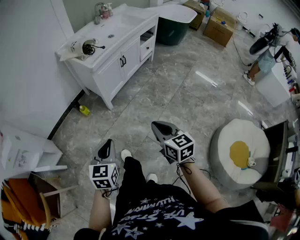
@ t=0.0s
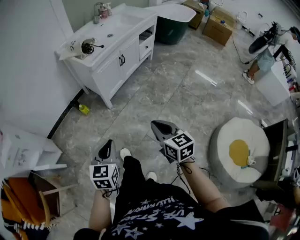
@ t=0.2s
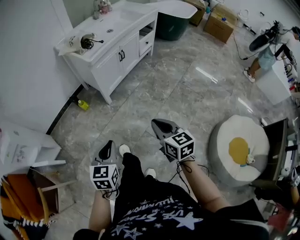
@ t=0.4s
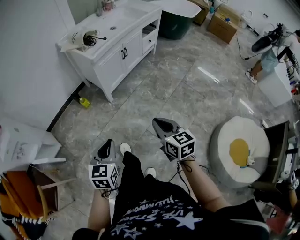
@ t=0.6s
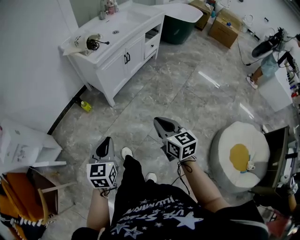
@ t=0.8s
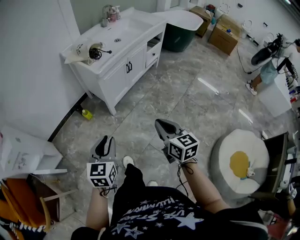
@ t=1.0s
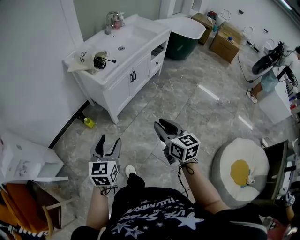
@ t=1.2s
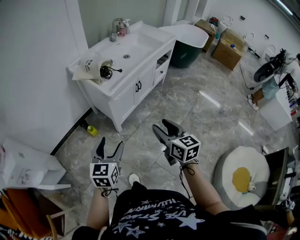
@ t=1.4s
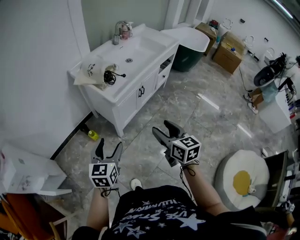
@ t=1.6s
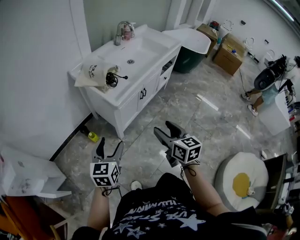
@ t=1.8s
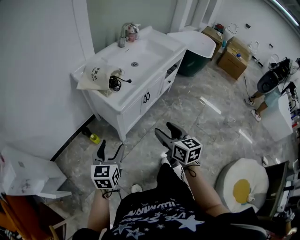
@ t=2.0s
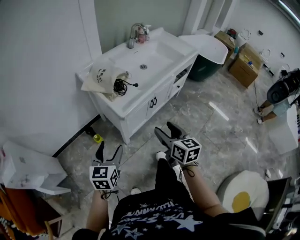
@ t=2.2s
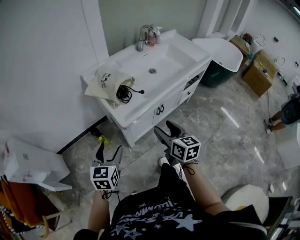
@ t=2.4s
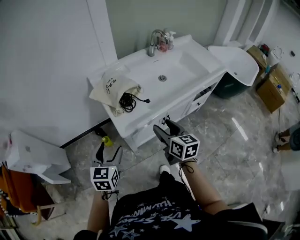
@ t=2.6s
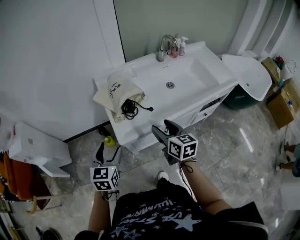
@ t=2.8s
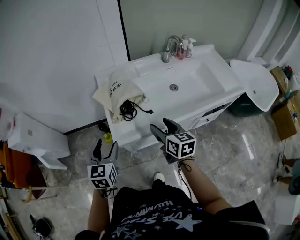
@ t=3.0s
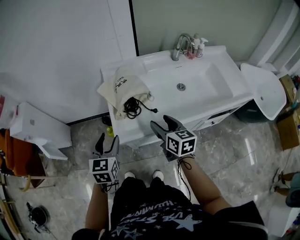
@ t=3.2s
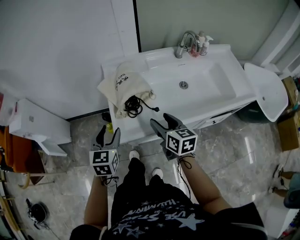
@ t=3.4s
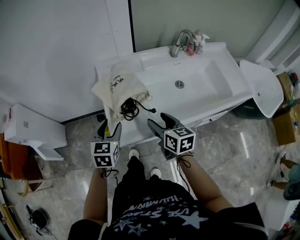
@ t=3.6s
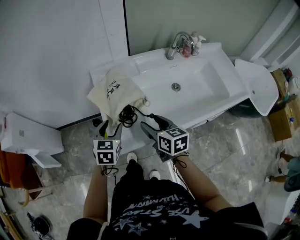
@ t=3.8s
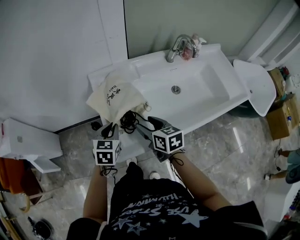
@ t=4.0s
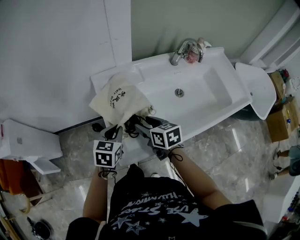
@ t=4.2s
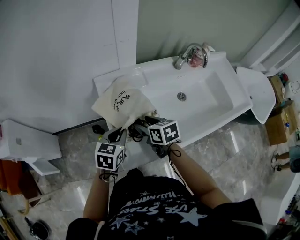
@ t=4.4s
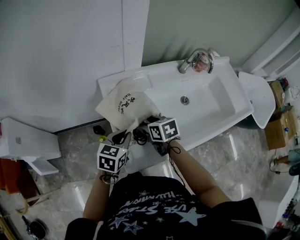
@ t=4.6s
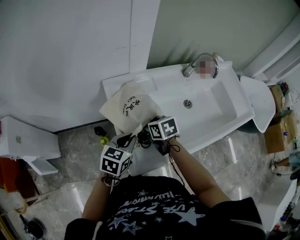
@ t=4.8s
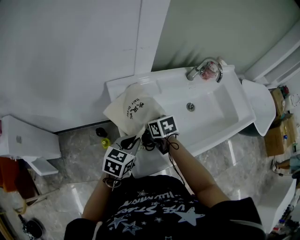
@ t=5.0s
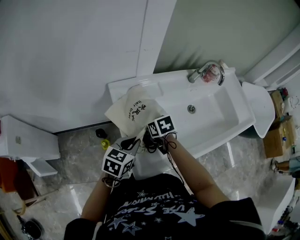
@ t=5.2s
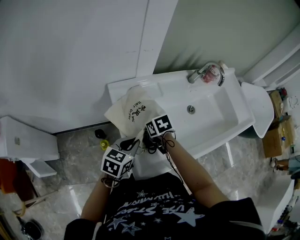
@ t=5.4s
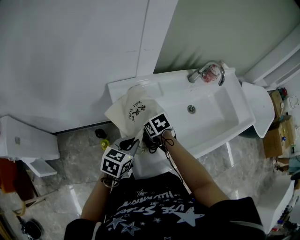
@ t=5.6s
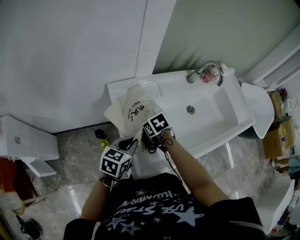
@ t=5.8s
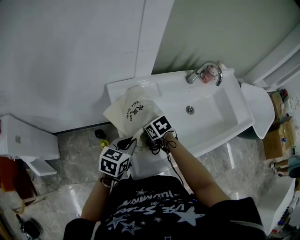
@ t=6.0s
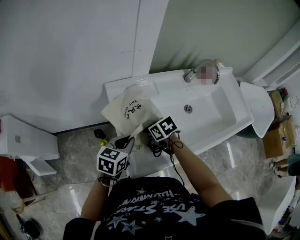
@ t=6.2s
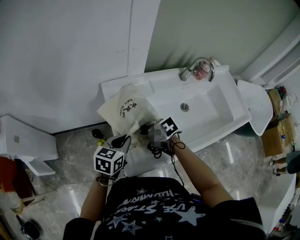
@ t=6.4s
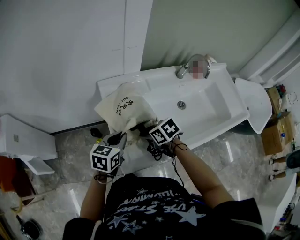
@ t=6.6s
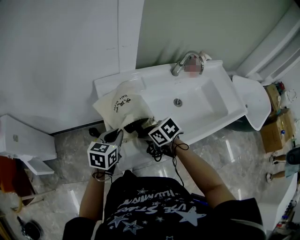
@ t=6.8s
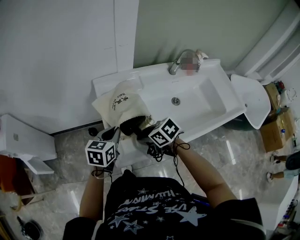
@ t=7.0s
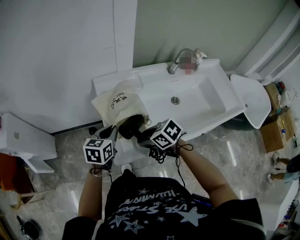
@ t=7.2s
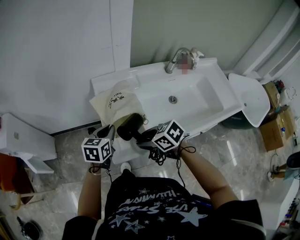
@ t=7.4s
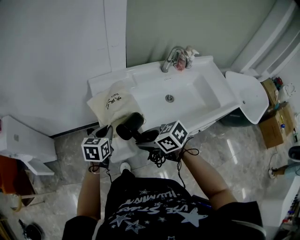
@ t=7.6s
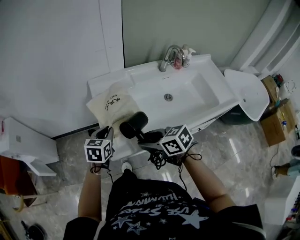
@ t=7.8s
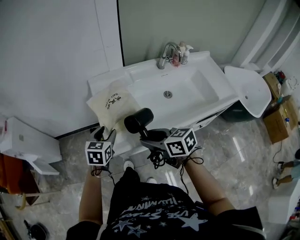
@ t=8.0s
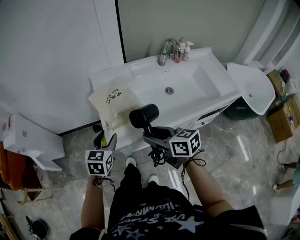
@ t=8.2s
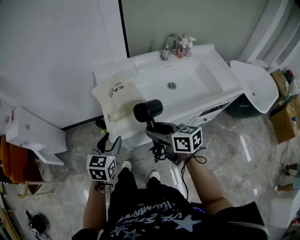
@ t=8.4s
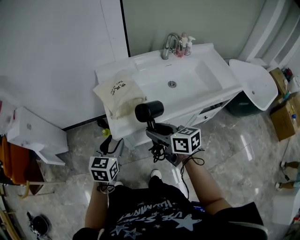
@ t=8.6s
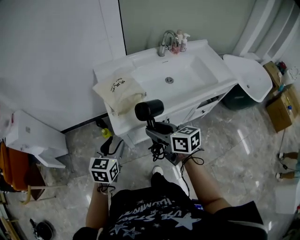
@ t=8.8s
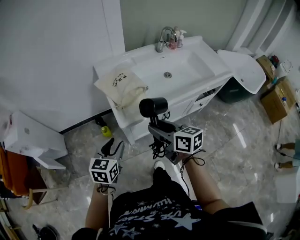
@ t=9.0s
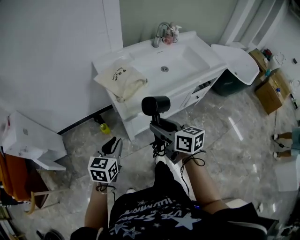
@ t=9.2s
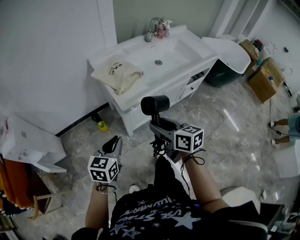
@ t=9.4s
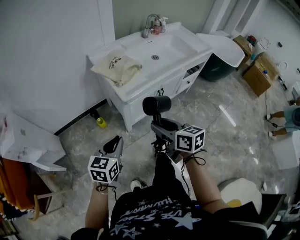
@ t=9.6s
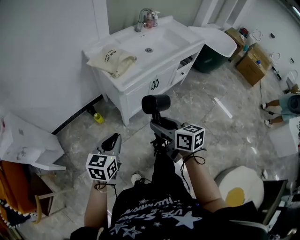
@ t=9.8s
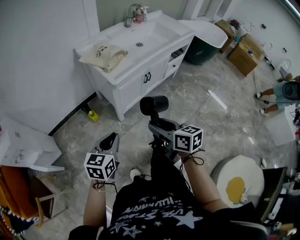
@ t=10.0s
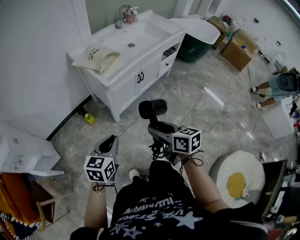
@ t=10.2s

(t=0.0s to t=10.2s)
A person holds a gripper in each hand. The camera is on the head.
t=0.0s - t=1.4s: Both grippers travel together forward, roughly 20 cm. The left gripper opens. The right gripper opens up.
t=1.4s - t=3.0s: The left gripper shifts by approximately 30 cm, and changes its angle by some 40 degrees; the right gripper ends up approximately 40 cm from where it was, and turns by about 30 degrees.
t=3.0s - t=4.4s: The left gripper heads forward, covering about 15 cm, turns by about 20 degrees, and closes up, while the right gripper heads forward and to the left, covering some 20 cm, and swivels some 20 degrees.
t=4.4s - t=5.8s: The right gripper moves downward and forward, about 10 cm, and rotates roughly 30 degrees.
t=5.8s - t=7.2s: The right gripper is displaced backward and upward by roughly 20 cm, and rotates roughly 30 degrees.
t=7.2s - t=8.8s: The right gripper goes some 15 cm backward and upward, and turns by about 40 degrees. Meanwhile the left gripper heads backward, covering some 20 cm, and opens.
t=8.8s - t=10.2s: The right gripper moves approximately 35 cm, and turns by about 30 degrees, while the left gripper moves some 30 cm, turns by roughly 30 degrees, and closes its fingers.

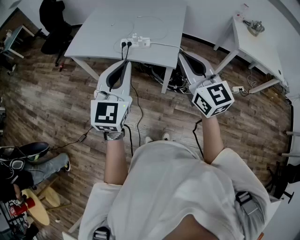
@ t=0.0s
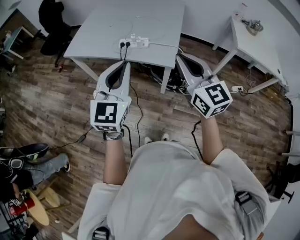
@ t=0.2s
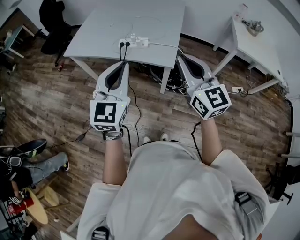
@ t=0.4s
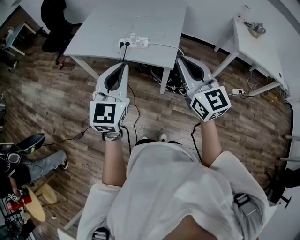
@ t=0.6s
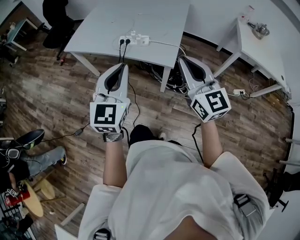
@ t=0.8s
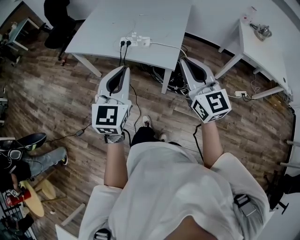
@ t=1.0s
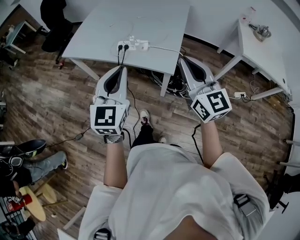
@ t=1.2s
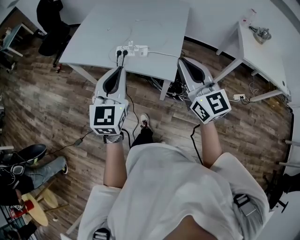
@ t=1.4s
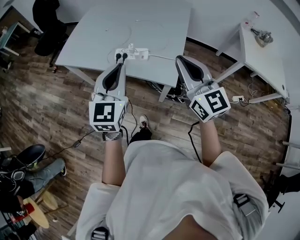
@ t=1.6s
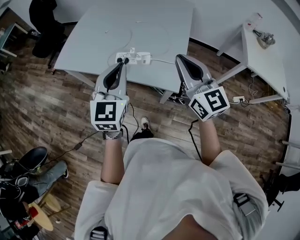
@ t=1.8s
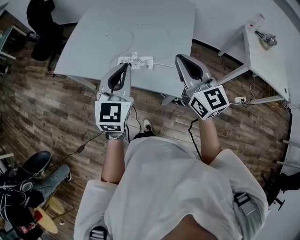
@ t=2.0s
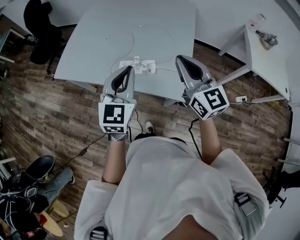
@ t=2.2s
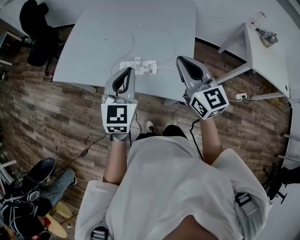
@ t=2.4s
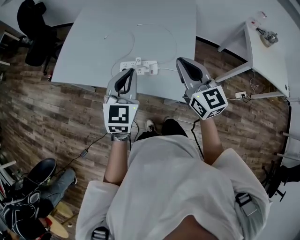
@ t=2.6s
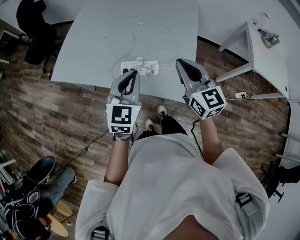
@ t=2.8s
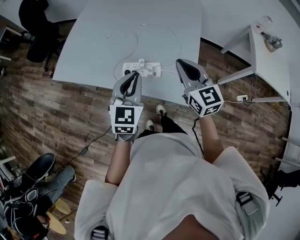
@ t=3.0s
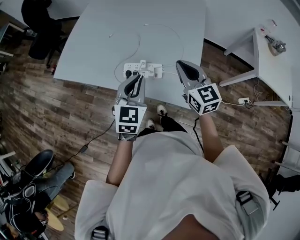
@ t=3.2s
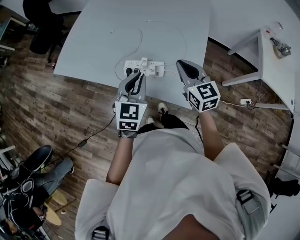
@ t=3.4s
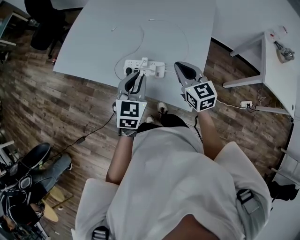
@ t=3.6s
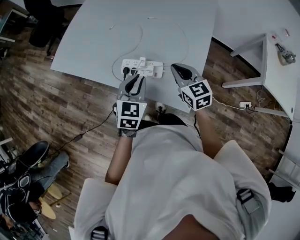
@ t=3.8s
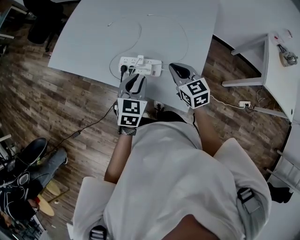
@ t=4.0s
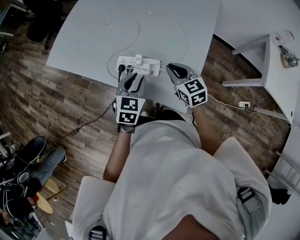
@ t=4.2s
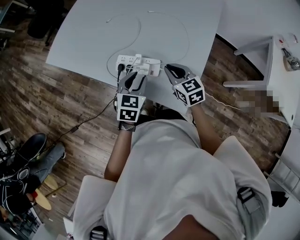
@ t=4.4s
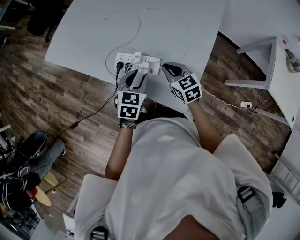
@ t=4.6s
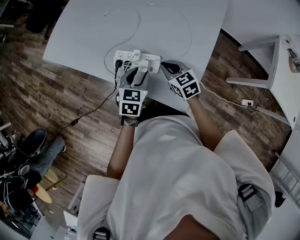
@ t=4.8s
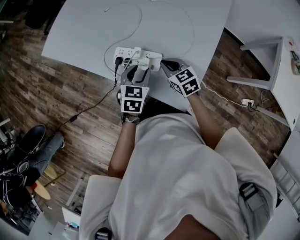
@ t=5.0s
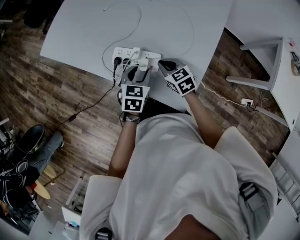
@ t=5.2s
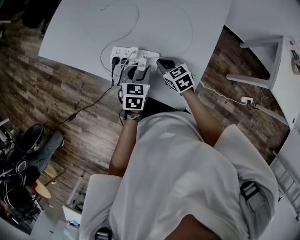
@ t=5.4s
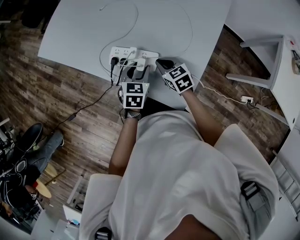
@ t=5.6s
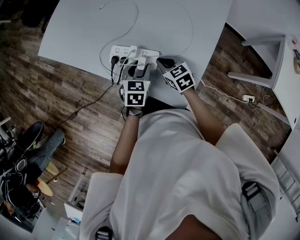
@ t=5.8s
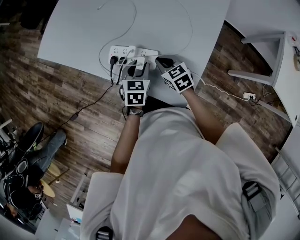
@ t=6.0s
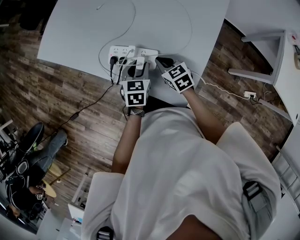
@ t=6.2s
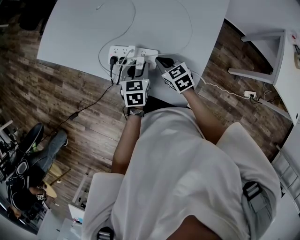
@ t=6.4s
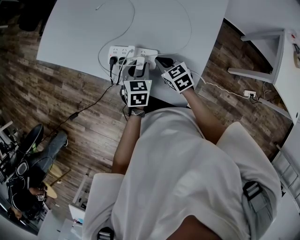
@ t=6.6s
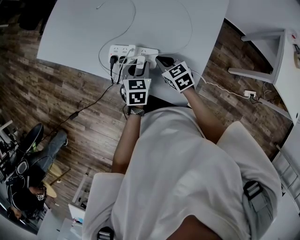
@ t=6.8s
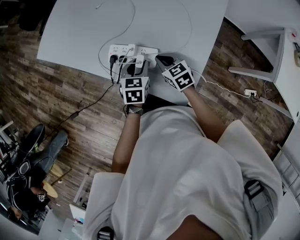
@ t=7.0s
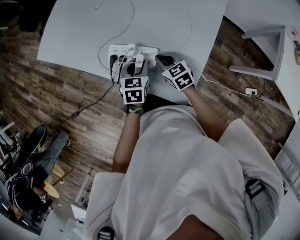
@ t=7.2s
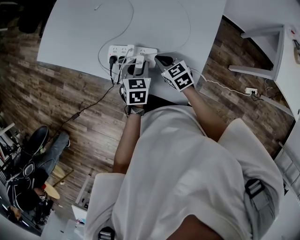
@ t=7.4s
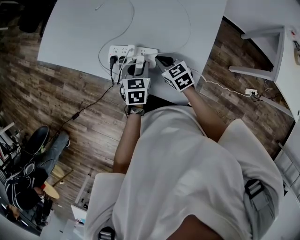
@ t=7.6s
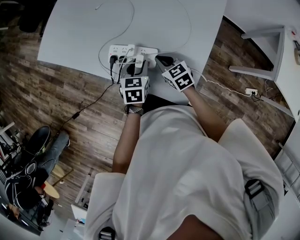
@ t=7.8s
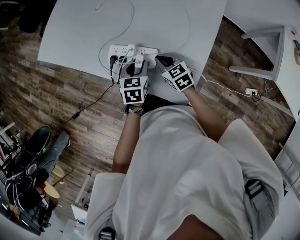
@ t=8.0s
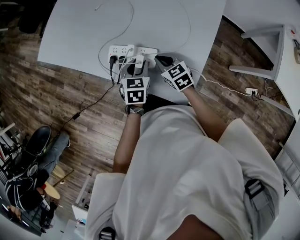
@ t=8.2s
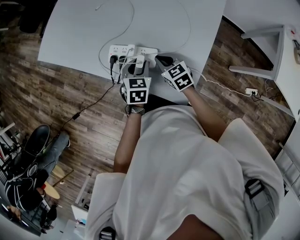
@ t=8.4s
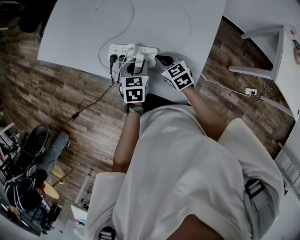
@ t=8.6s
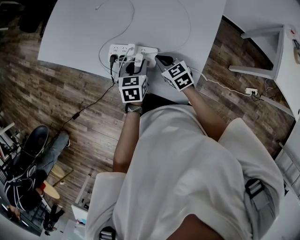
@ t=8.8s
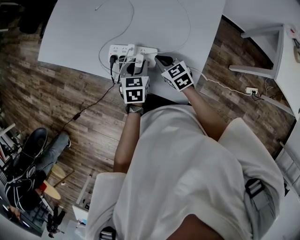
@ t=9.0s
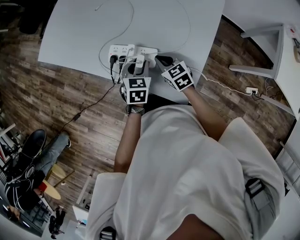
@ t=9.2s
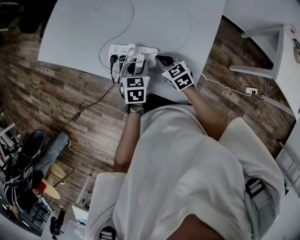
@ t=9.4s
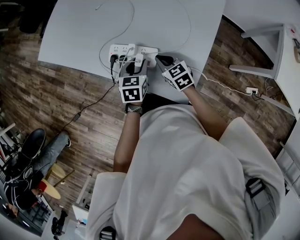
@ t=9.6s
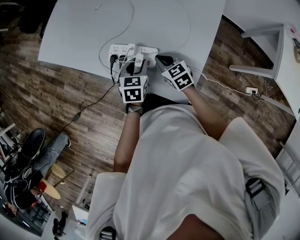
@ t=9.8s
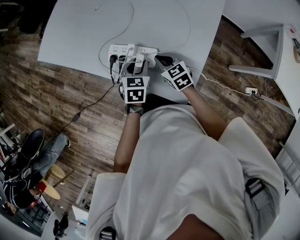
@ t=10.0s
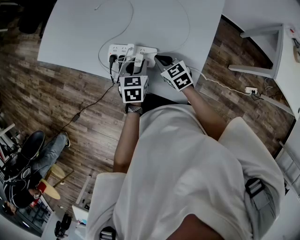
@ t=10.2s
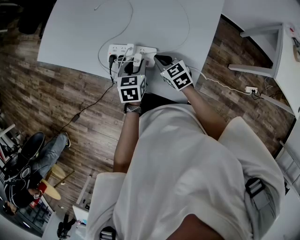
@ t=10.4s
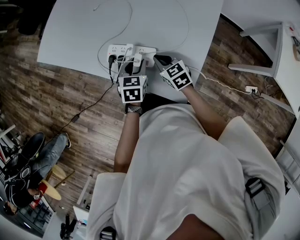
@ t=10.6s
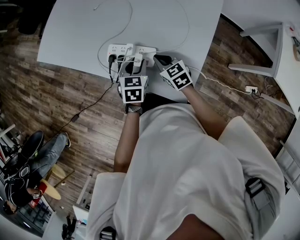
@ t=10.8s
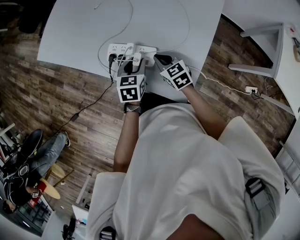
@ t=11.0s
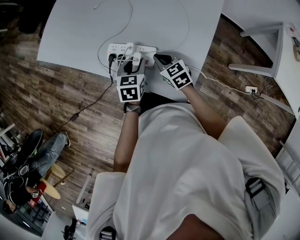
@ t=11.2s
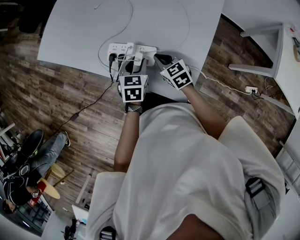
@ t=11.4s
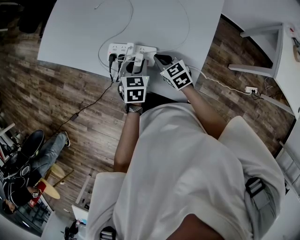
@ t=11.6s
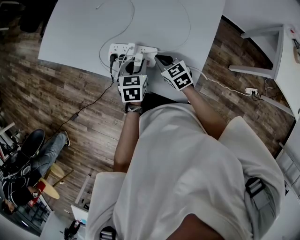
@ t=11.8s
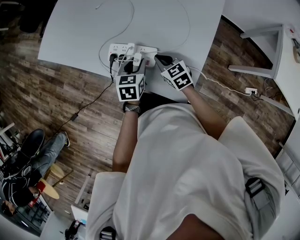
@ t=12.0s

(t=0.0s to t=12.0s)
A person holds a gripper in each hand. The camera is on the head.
t=0.0s - t=1.6s: Both grippers move forward, about 15 cm.
t=1.6s - t=3.0s: Both grippers move forward and downward, about 20 cm.
t=3.0s - t=4.4s: The grippers both shift downward by roughly 20 cm. The right gripper turns by some 30 degrees, while the left gripper turns by about 20 degrees.
t=4.4s - t=6.0s: Both grippers travel together downward, approximately 10 cm.
t=6.0s - t=12.0s: There are only small adjustments of the grippers.

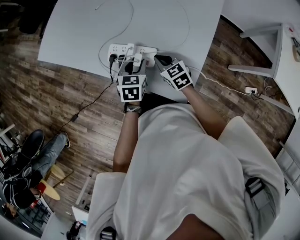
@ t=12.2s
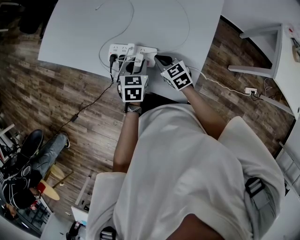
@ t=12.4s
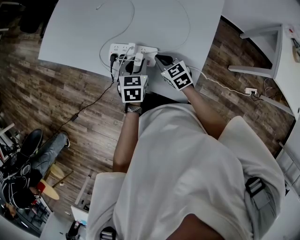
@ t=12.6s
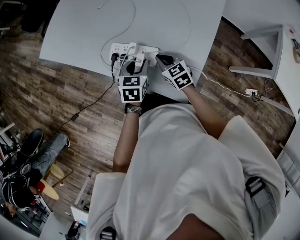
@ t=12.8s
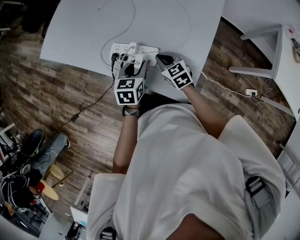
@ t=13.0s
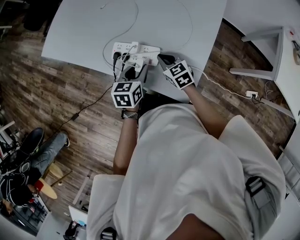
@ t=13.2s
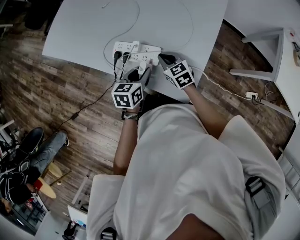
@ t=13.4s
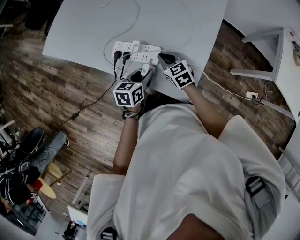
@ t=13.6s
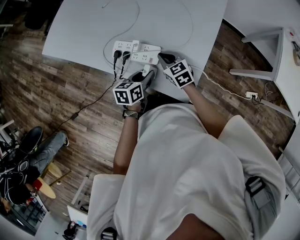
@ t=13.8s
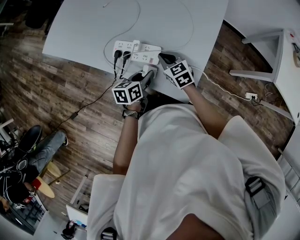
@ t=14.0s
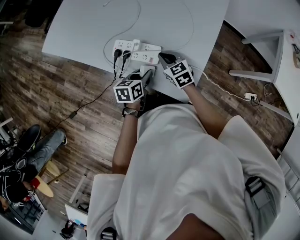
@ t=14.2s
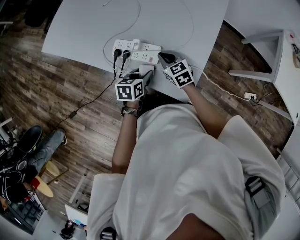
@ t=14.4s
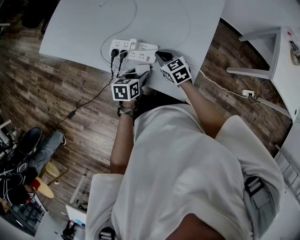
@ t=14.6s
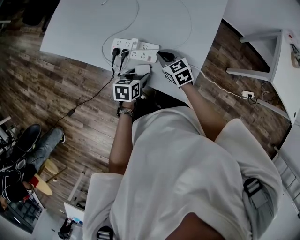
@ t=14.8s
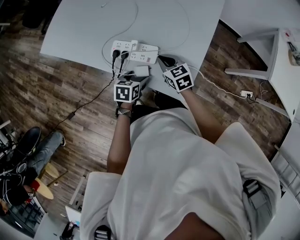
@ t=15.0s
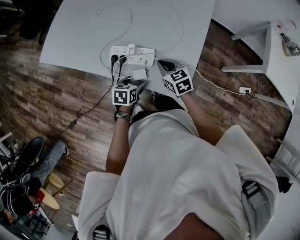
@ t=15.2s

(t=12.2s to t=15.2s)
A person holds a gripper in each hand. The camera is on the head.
t=12.2s - t=13.8s: The left gripper goes approximately 5 cm backward, and changes its angle by approximately 30 degrees.
t=13.8s - t=15.2s: The right gripper changes place by about 5 cm, while the left gripper shifts by about 5 cm, changes its angle by about 20 degrees, and opens its fingers.
